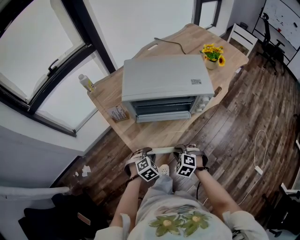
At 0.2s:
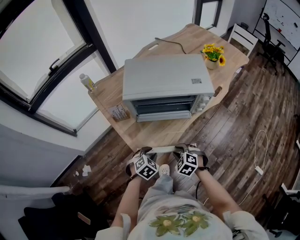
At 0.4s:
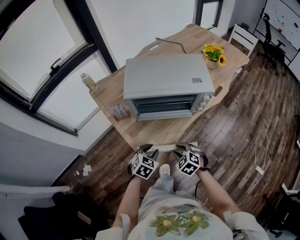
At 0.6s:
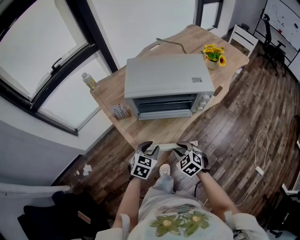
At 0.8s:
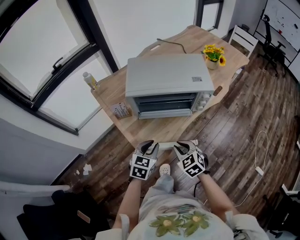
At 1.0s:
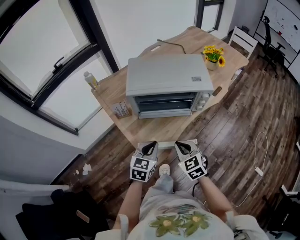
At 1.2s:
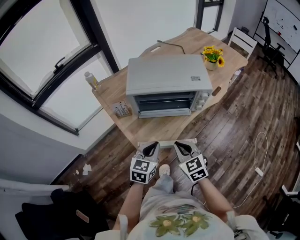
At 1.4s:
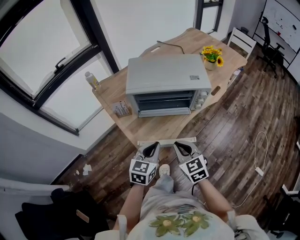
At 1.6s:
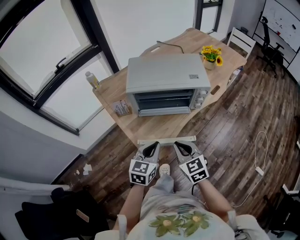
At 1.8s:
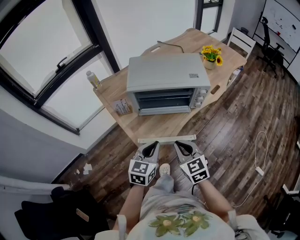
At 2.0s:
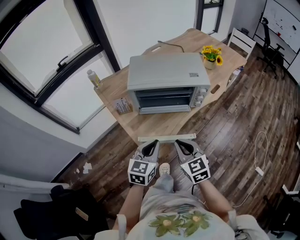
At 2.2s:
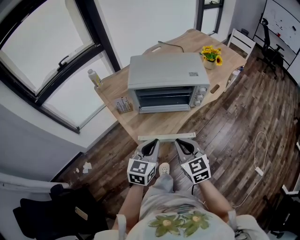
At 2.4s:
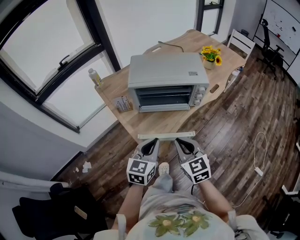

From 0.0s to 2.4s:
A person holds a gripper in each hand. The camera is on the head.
From 0.0s to 1.2s: Both grippers move upward, roughly 15 cm. The right gripper tilts its fingers about 30 degrees upward, and closes, while the left gripper tilts its fingers roughly 40 degrees upward, and closes up.
From 1.2s to 2.4s: The grippers both shift upward by roughly 5 cm.

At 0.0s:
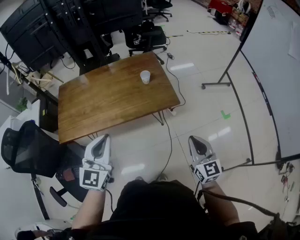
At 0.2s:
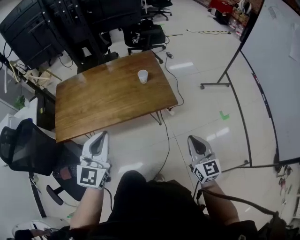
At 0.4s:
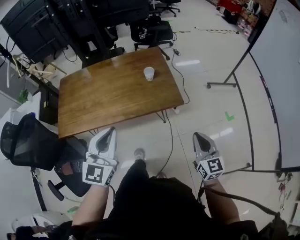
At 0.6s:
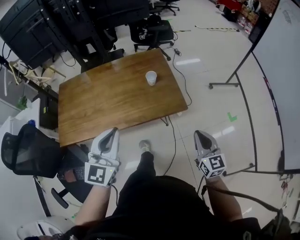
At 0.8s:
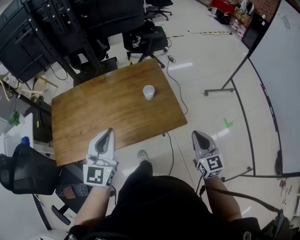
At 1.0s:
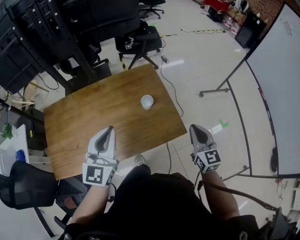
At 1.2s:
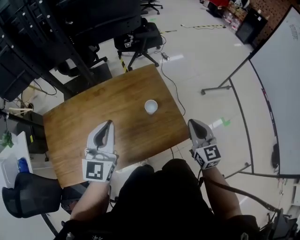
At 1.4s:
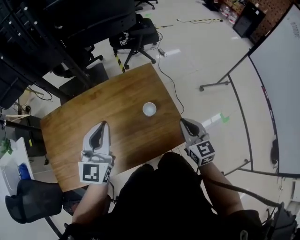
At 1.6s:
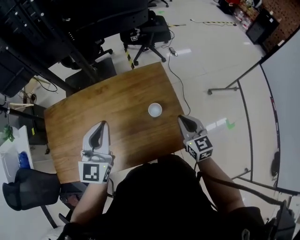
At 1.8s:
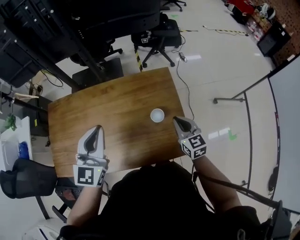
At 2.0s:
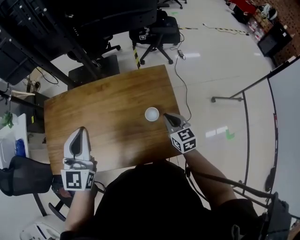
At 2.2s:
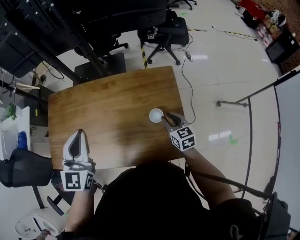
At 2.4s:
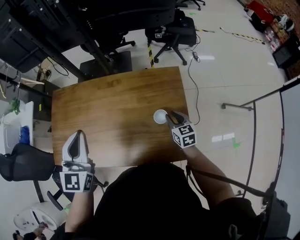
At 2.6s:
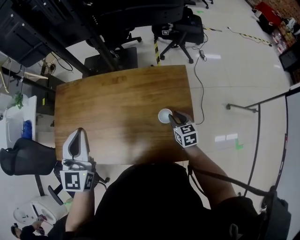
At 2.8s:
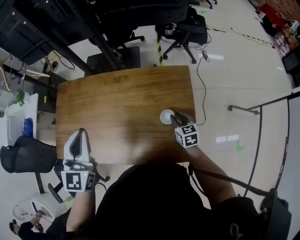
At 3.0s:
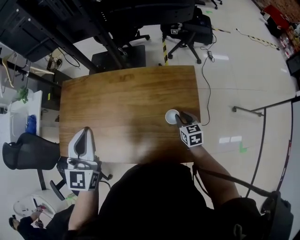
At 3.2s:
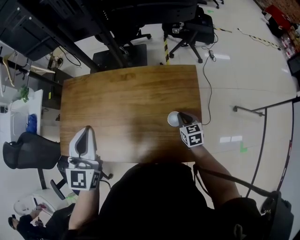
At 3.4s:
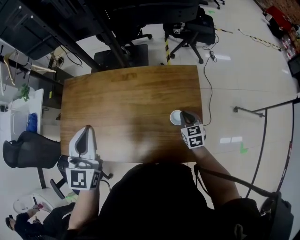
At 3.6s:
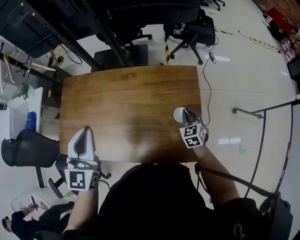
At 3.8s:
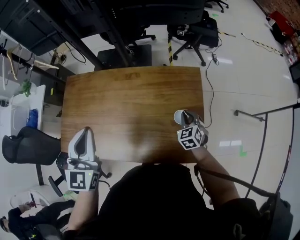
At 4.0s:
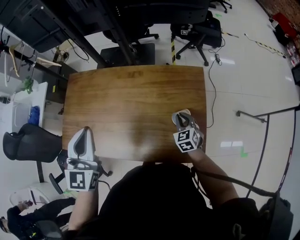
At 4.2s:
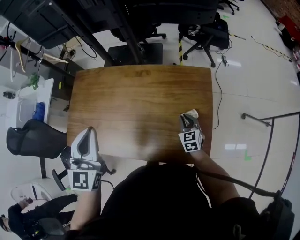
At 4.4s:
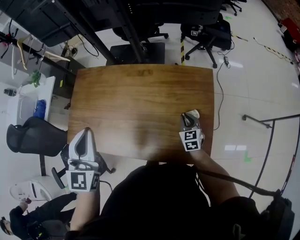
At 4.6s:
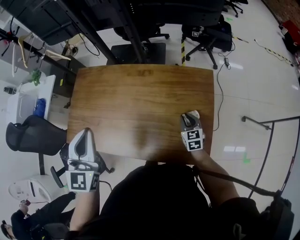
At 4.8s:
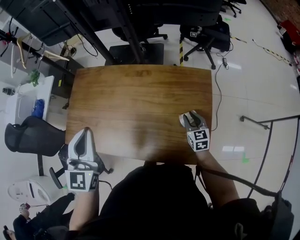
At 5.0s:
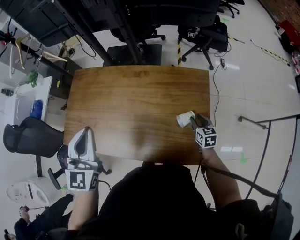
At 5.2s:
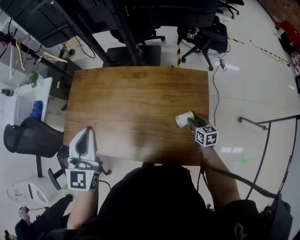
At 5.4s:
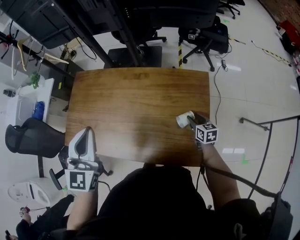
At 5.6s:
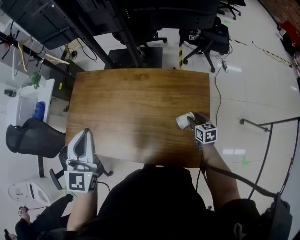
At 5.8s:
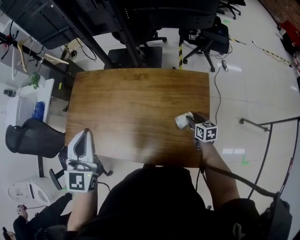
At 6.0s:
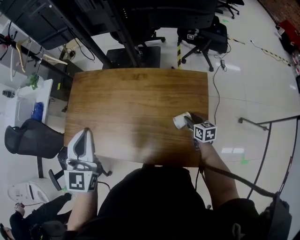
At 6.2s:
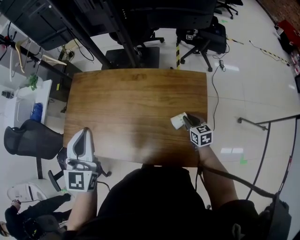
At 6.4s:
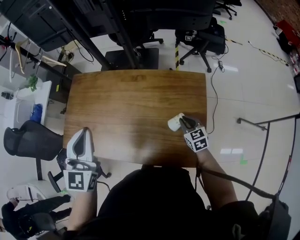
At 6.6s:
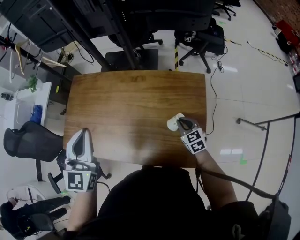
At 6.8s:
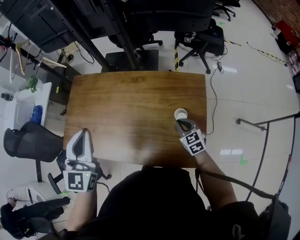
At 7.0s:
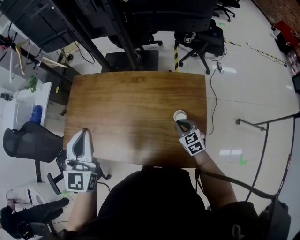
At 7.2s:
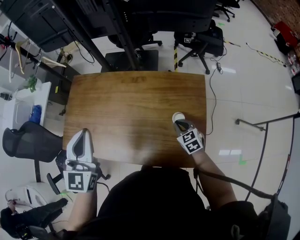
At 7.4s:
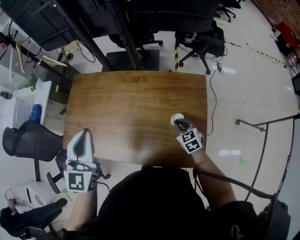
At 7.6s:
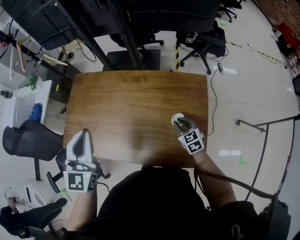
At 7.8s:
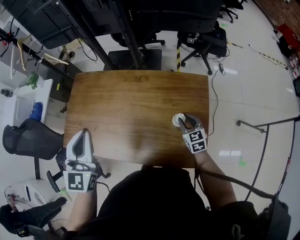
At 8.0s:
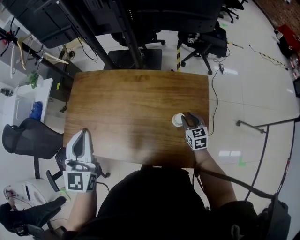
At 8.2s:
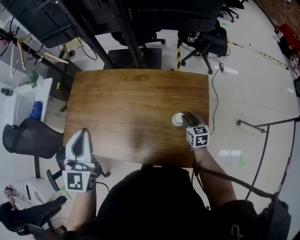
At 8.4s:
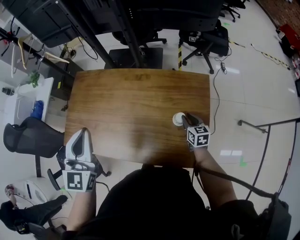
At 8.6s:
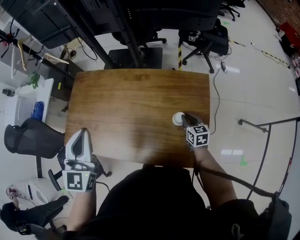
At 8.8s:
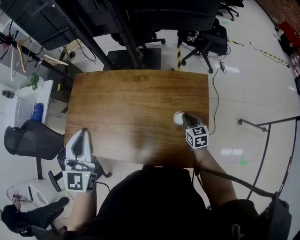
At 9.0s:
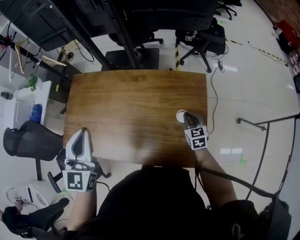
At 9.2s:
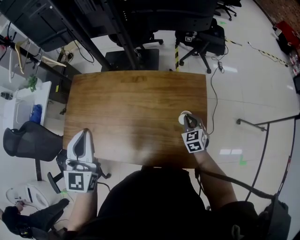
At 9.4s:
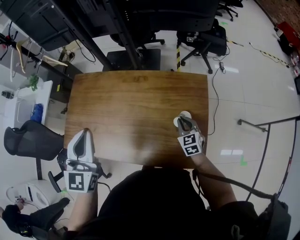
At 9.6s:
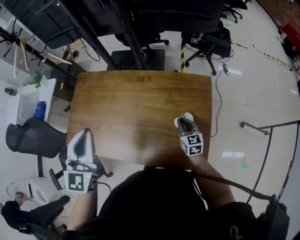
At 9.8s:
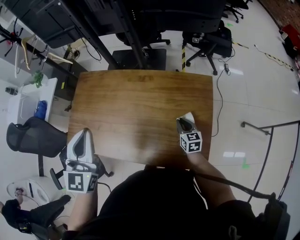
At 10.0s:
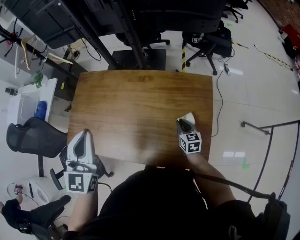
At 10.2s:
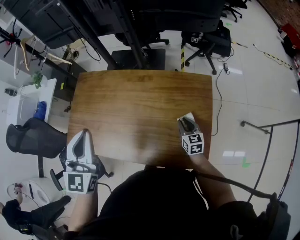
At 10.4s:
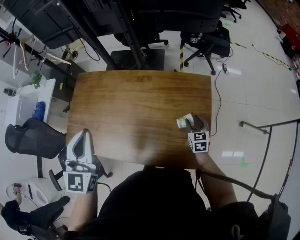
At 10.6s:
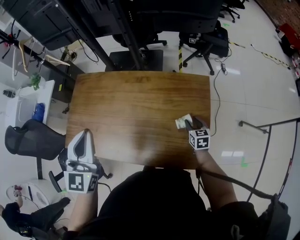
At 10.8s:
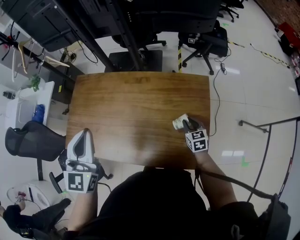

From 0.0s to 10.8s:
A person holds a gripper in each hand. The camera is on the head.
From 0.0s to 1.6s: Both grippers travel together forward, about 35 cm.
From 1.6s to 3.0s: The right gripper heads downward and forward, covering approximately 20 cm, changes its angle by some 20 degrees, and opens its fingers; the left gripper is displaced to the left by some 10 cm, and swivels about 20 degrees.
From 3.0s to 4.6s: Both grippers travel together to the left, approximately 5 cm.
From 4.6s to 6.2s: The right gripper moves to the right, roughly 5 cm, and opens and closes again.
From 6.2s to 7.8s: The right gripper moves roughly 5 cm.
From 7.8s to 9.2s: The grippers move only a little.
From 9.2s to 10.8s: The right gripper opens, then closes once more.

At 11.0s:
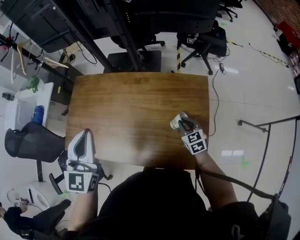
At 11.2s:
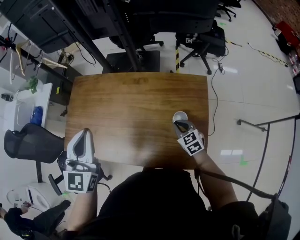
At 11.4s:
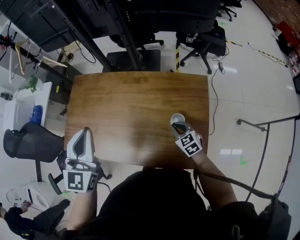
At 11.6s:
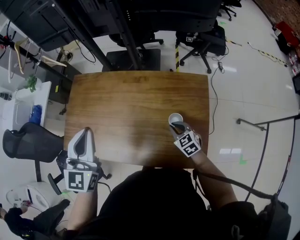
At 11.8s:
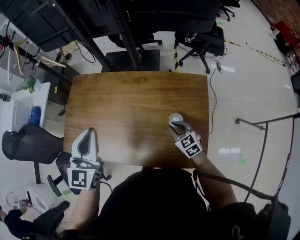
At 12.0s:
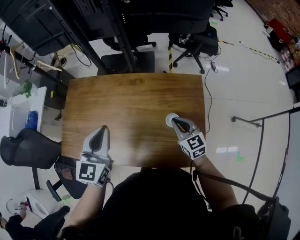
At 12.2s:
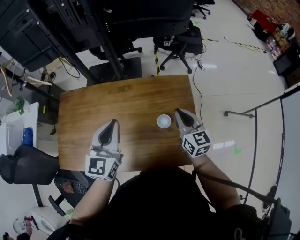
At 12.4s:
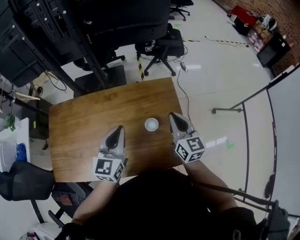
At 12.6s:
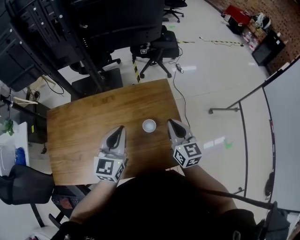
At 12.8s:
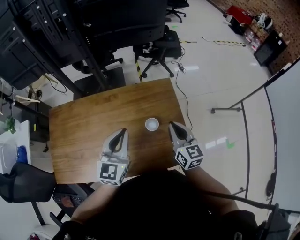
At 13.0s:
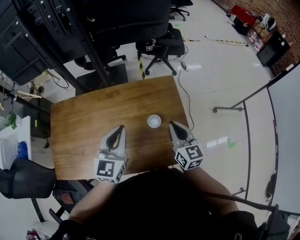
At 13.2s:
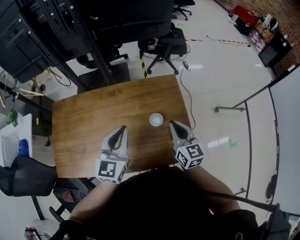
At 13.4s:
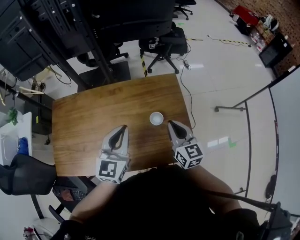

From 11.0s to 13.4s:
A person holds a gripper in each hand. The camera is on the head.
From 11.0s to 12.2s: The left gripper shifts approximately 10 cm to the right and downward. The right gripper goes approximately 15 cm upward, and rotates about 30 degrees.
From 12.2s to 13.4s: The left gripper travels to the right by about 5 cm. The right gripper moves backward, some 5 cm.

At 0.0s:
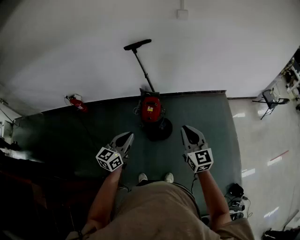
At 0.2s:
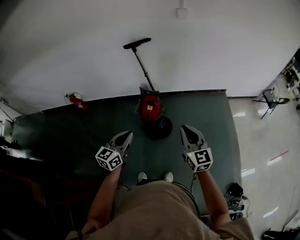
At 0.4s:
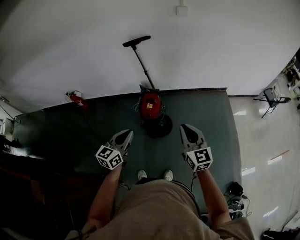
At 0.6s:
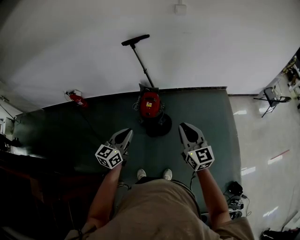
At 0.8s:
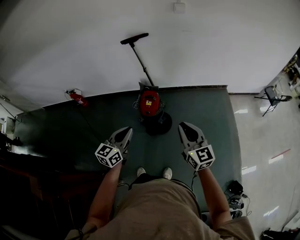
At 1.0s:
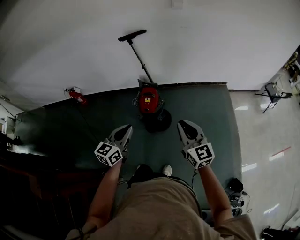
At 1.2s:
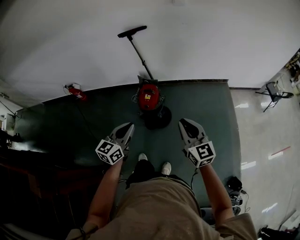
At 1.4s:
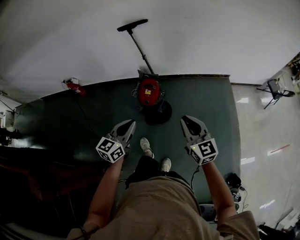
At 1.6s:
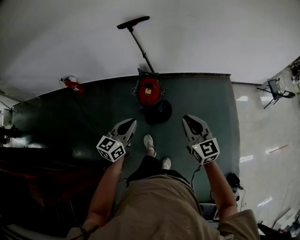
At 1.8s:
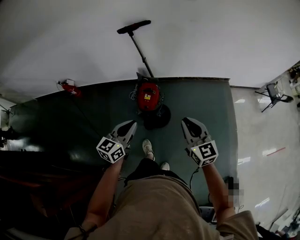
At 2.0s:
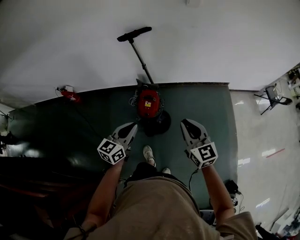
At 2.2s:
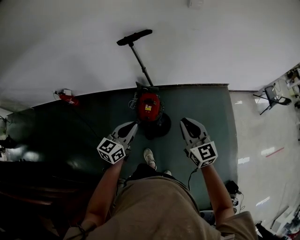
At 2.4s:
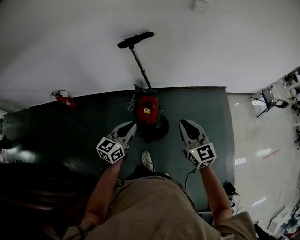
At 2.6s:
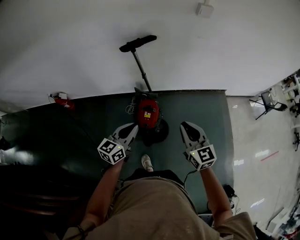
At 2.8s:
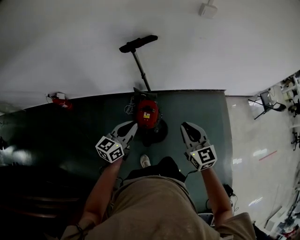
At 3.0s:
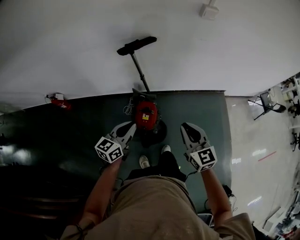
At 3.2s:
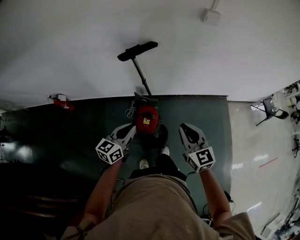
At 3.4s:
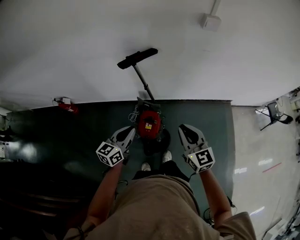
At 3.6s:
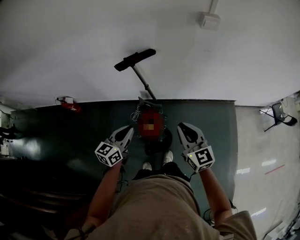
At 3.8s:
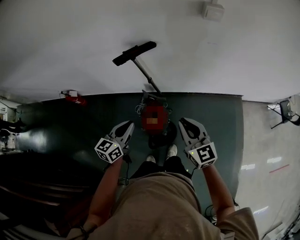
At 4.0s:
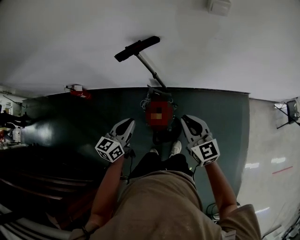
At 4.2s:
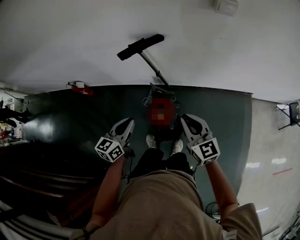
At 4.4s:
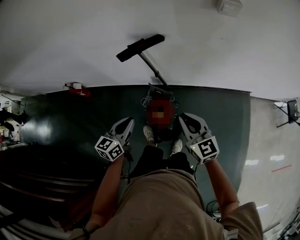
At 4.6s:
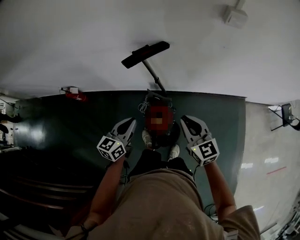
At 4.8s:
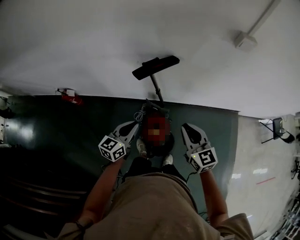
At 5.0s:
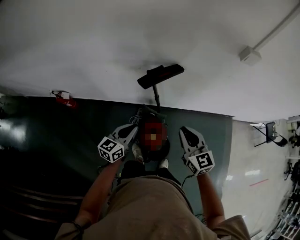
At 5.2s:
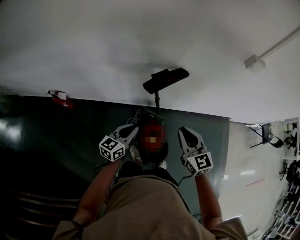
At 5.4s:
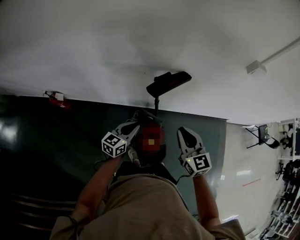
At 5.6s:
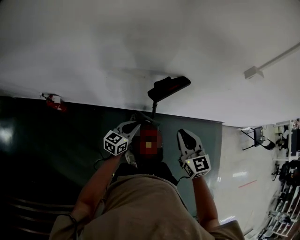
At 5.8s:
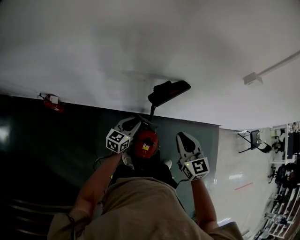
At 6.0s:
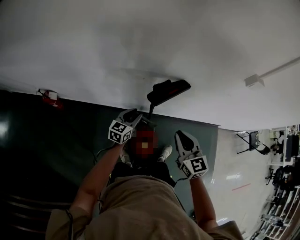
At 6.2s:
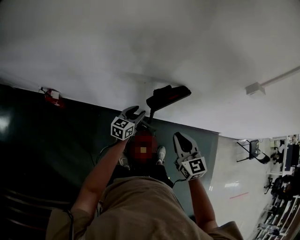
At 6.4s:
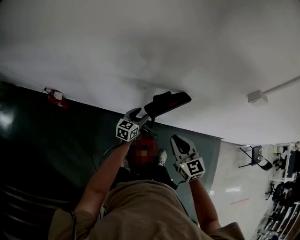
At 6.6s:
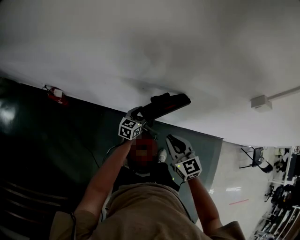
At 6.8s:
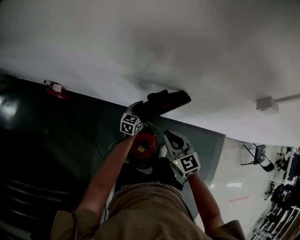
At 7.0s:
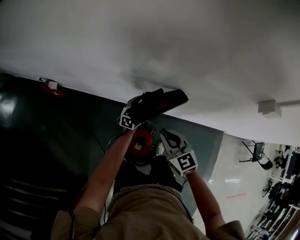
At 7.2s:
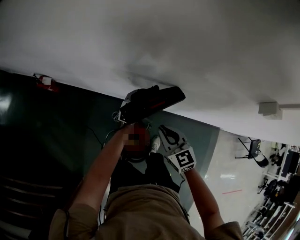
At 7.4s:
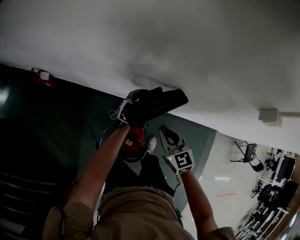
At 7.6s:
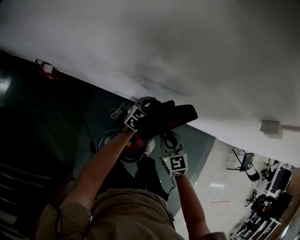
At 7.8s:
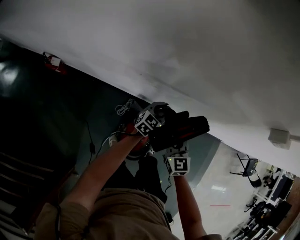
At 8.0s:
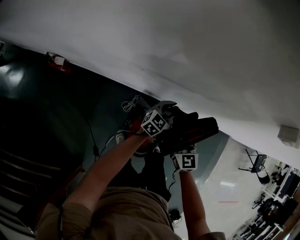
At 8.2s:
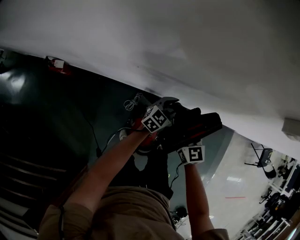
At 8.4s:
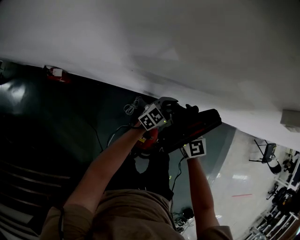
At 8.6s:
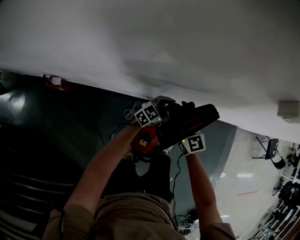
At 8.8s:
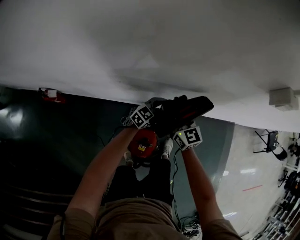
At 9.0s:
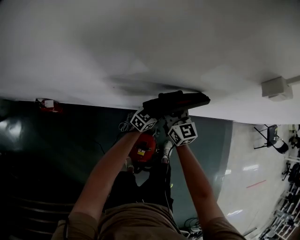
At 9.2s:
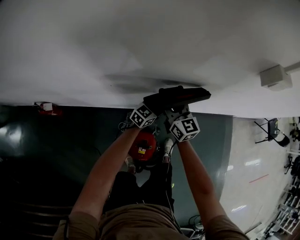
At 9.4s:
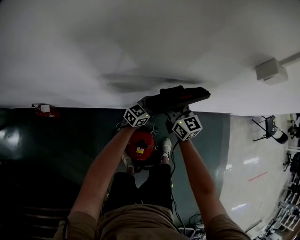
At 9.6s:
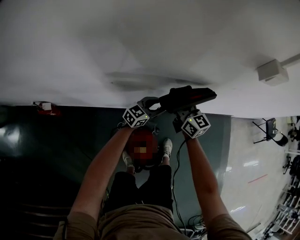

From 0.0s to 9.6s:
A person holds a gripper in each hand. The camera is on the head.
From 0.0s to 1.6s: The two grippers go approximately 5 cm forward.
From 1.6s to 3.2s: The right gripper goes approximately 30 cm forward and to the left, while the left gripper goes about 30 cm forward.
From 3.2s to 4.8s: The two grippers go about 15 cm forward.
From 4.8s to 6.4s: The right gripper goes approximately 20 cm forward and to the left, while the left gripper moves forward, roughly 25 cm, and opens.
From 6.4s to 8.0s: The left gripper heads to the right and downward, covering some 25 cm, and swivels about 20 degrees, while the right gripper shifts about 20 cm downward, forward and to the right, and opens.
From 8.0s to 9.6s: The right gripper heads forward, covering about 10 cm, and rotates about 20 degrees. The left gripper rotates approximately 20 degrees.
